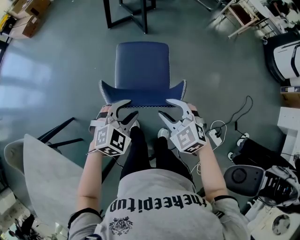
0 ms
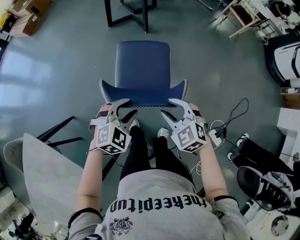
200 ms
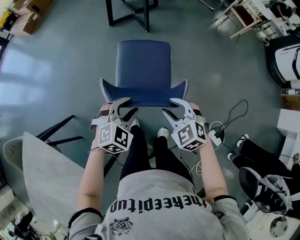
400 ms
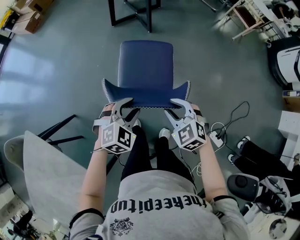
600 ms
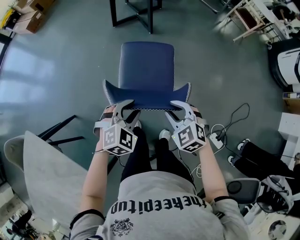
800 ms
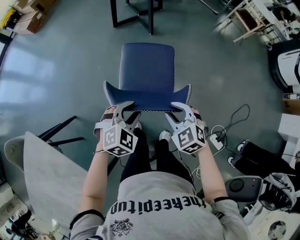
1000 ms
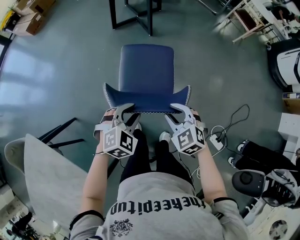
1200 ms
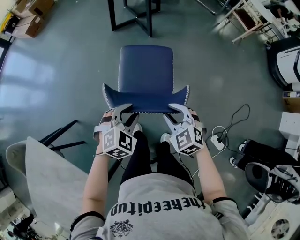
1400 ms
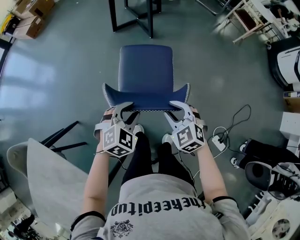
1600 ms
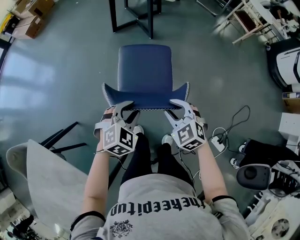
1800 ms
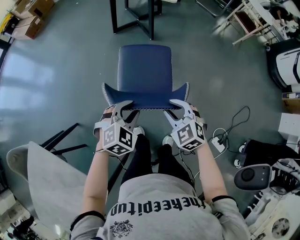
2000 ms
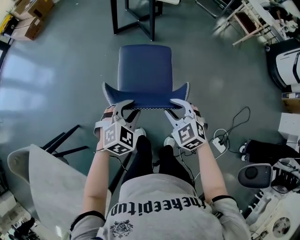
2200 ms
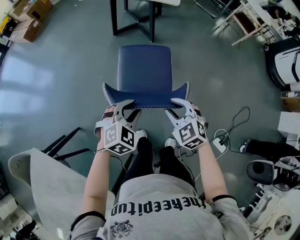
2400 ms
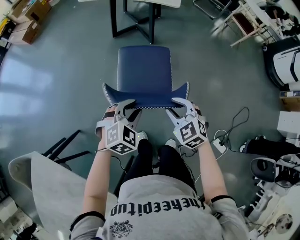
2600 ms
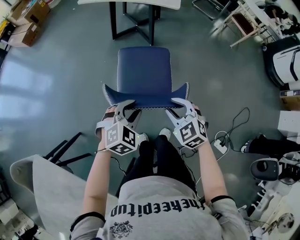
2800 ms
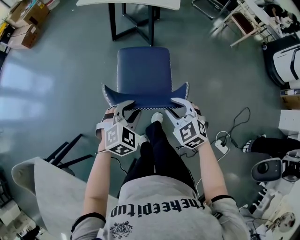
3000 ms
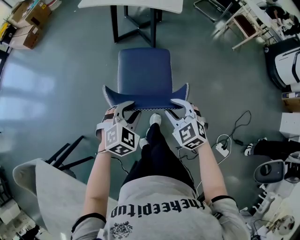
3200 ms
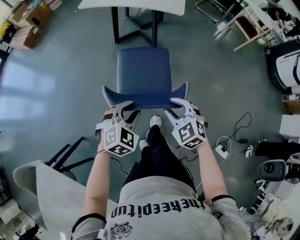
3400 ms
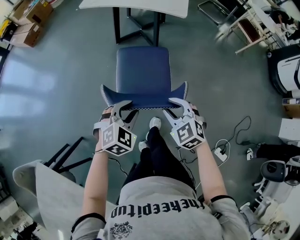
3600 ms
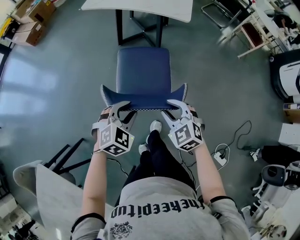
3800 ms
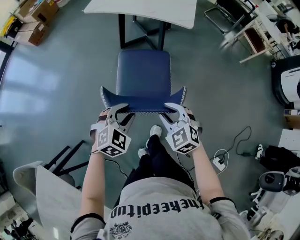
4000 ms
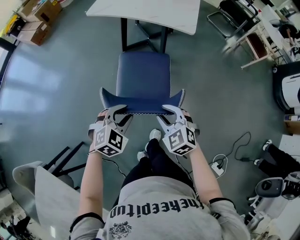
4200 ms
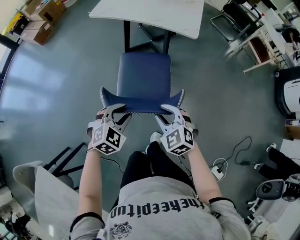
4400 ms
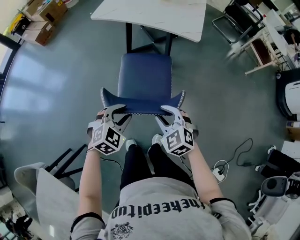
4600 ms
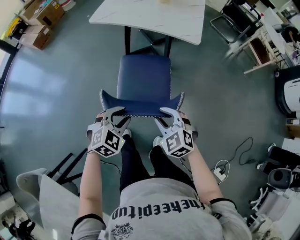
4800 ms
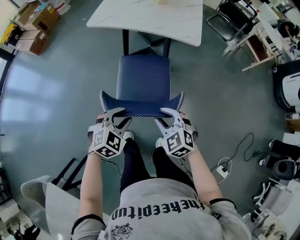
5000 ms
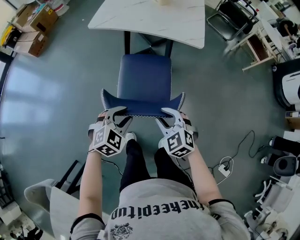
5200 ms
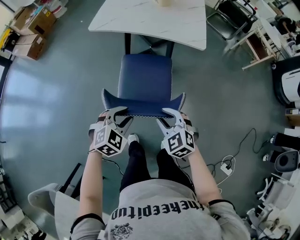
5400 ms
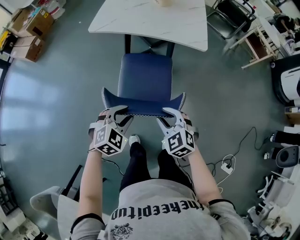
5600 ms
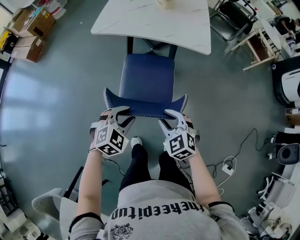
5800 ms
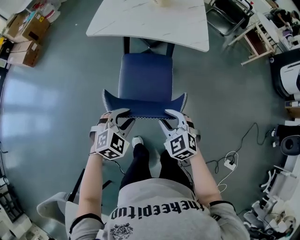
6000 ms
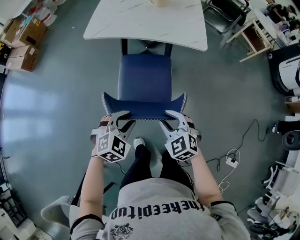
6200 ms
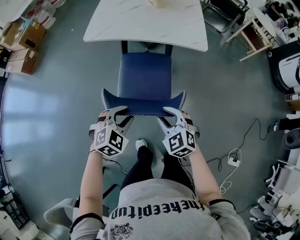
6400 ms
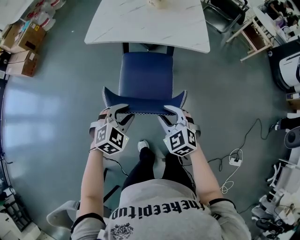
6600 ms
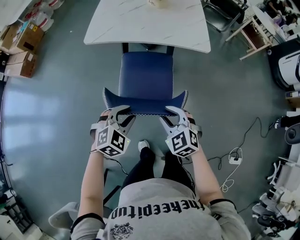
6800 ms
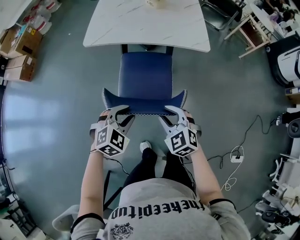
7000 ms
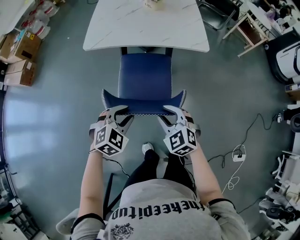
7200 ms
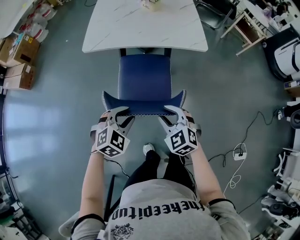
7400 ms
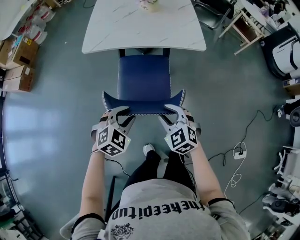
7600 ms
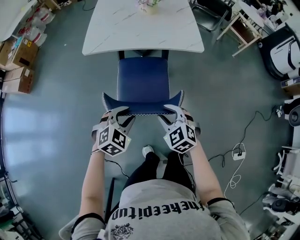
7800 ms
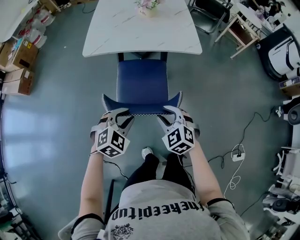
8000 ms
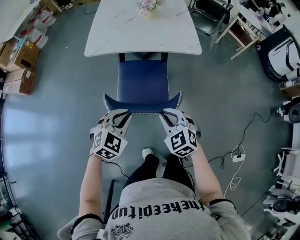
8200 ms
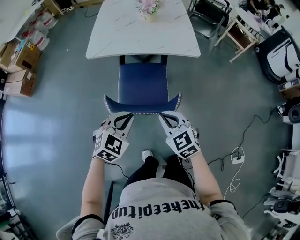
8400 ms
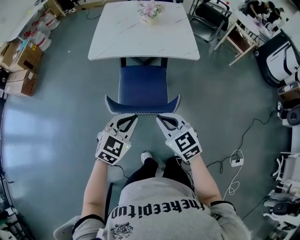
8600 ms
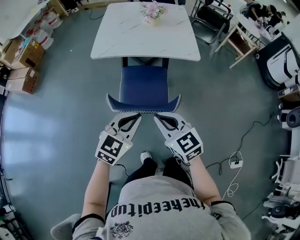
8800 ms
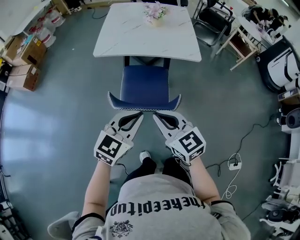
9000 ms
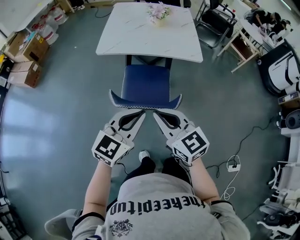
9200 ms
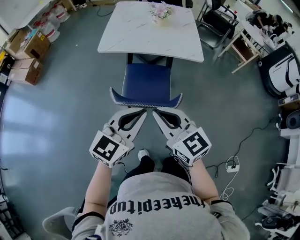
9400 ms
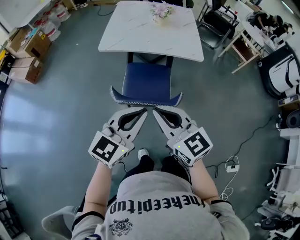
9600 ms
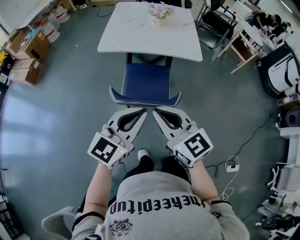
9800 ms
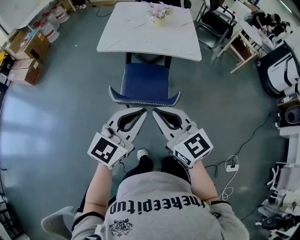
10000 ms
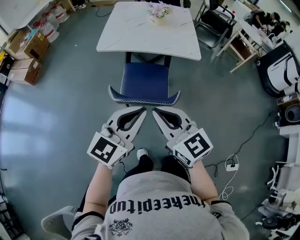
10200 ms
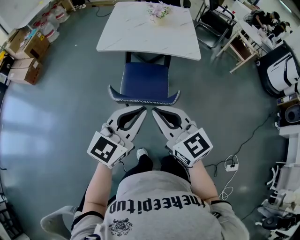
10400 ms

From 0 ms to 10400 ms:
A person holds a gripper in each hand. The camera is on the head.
From 0 ms to 1400 ms: There are only small adjustments of the grippers.
From 1400 ms to 3000 ms: Both grippers travel together forward and to the left, approximately 10 cm.
From 3000 ms to 4400 ms: The grippers both shift forward by about 15 cm.
From 4400 ms to 6000 ms: The left gripper heads forward and to the left, covering approximately 15 cm. Meanwhile the right gripper goes approximately 15 cm to the left and forward.
From 6000 ms to 7400 ms: The left gripper moves forward and to the left, roughly 10 cm; the right gripper heads forward, covering some 5 cm.
From 7400 ms to 9000 ms: The grippers both shift upward by some 15 cm. The left gripper tips its fingers upward by roughly 30 degrees, and closes. The right gripper changes its angle by some 30 degrees, and closes its fingers.
From 9000 ms to 10400 ms: Both grippers travel together upward, some 5 cm.

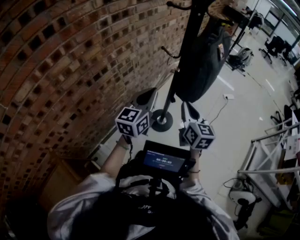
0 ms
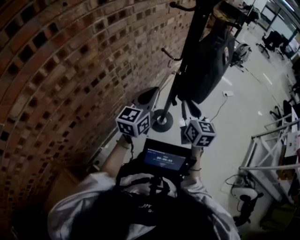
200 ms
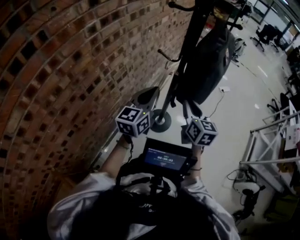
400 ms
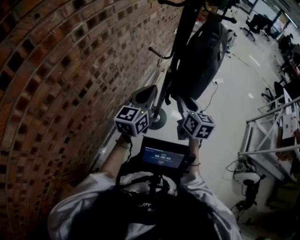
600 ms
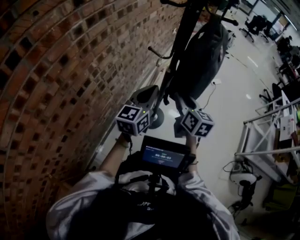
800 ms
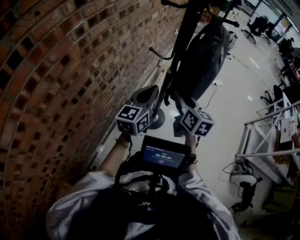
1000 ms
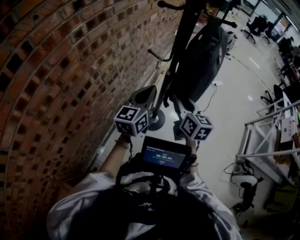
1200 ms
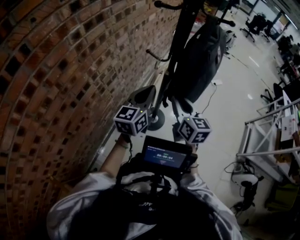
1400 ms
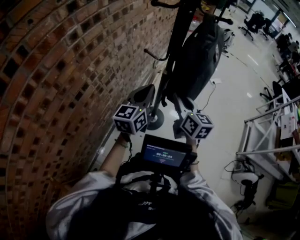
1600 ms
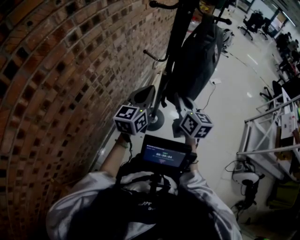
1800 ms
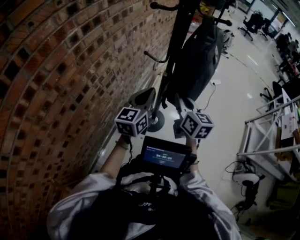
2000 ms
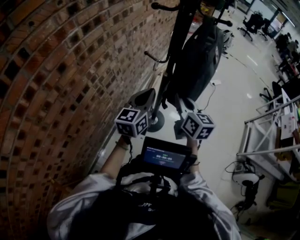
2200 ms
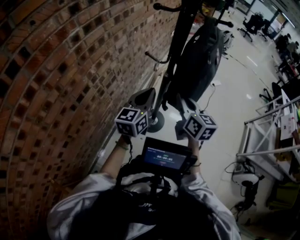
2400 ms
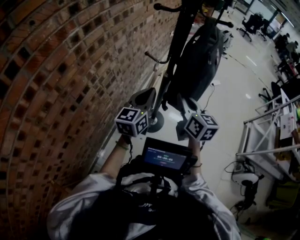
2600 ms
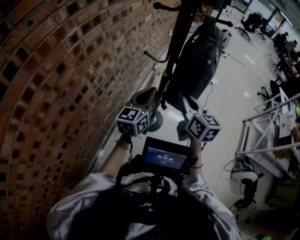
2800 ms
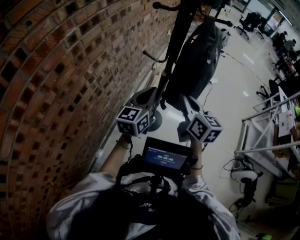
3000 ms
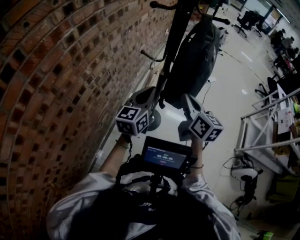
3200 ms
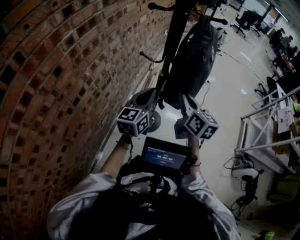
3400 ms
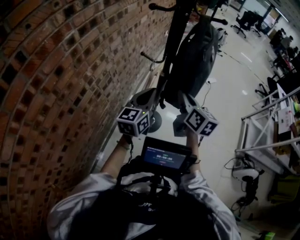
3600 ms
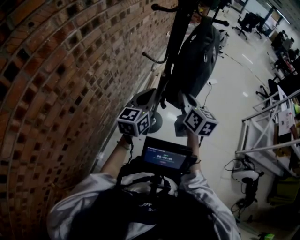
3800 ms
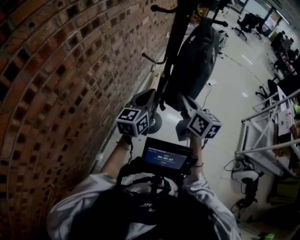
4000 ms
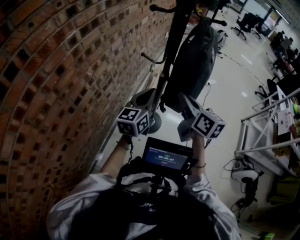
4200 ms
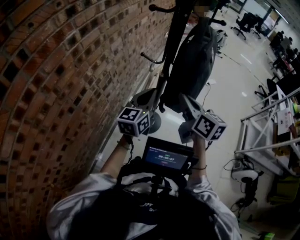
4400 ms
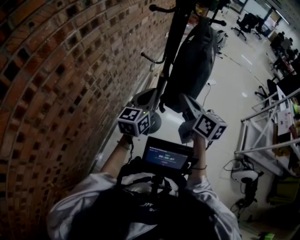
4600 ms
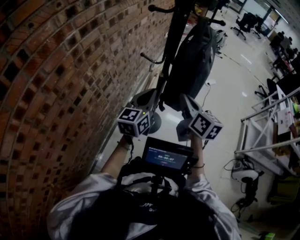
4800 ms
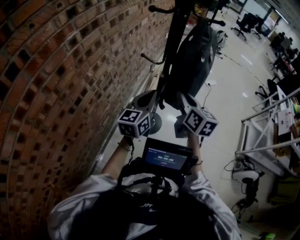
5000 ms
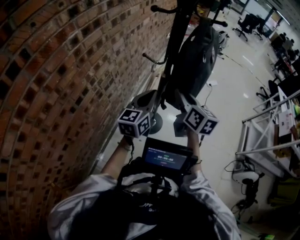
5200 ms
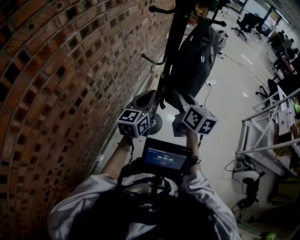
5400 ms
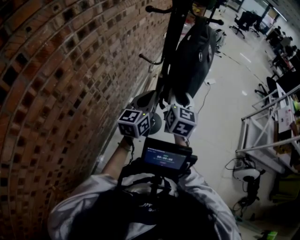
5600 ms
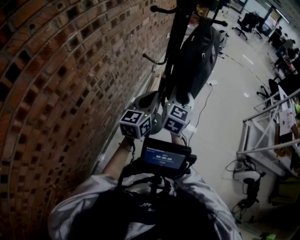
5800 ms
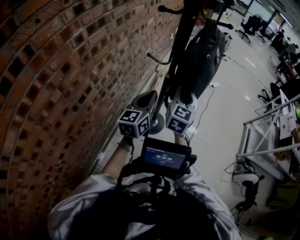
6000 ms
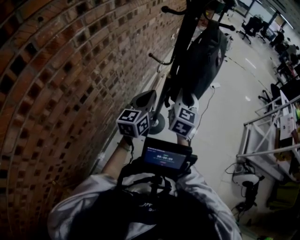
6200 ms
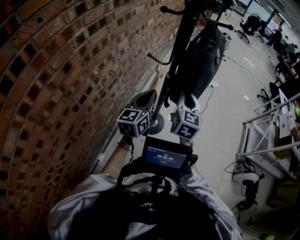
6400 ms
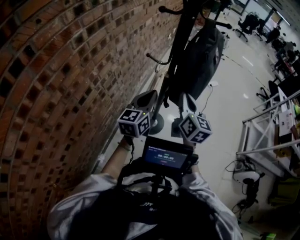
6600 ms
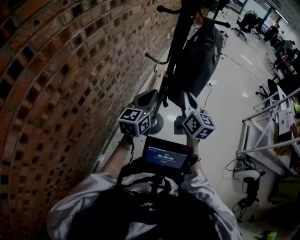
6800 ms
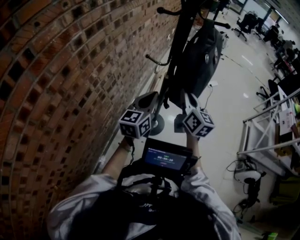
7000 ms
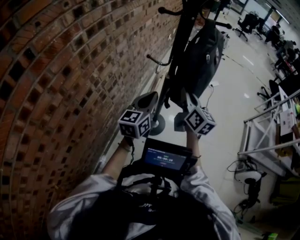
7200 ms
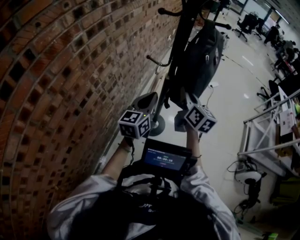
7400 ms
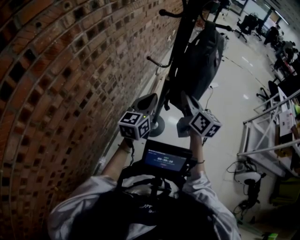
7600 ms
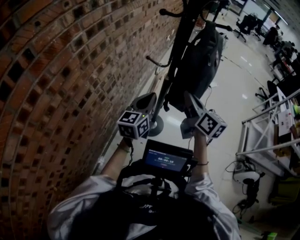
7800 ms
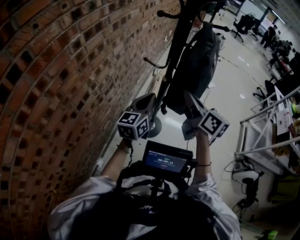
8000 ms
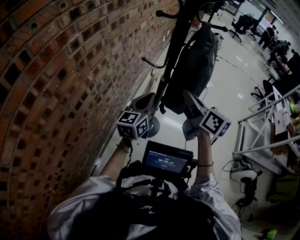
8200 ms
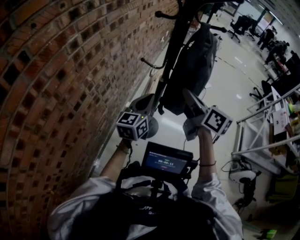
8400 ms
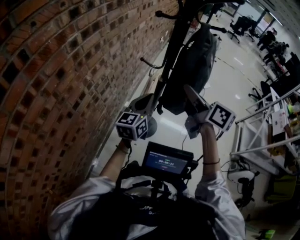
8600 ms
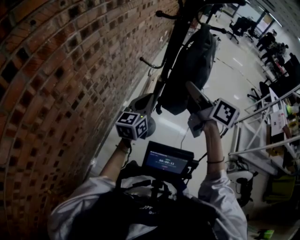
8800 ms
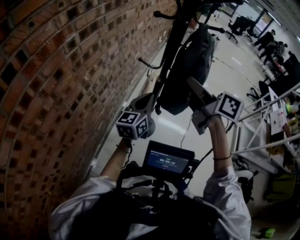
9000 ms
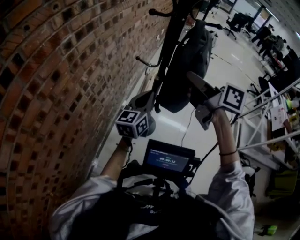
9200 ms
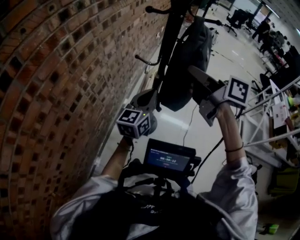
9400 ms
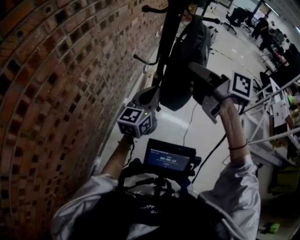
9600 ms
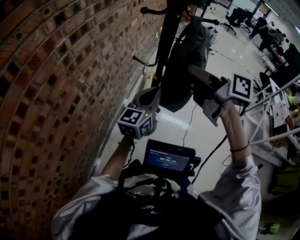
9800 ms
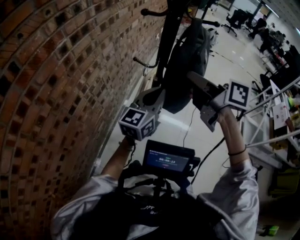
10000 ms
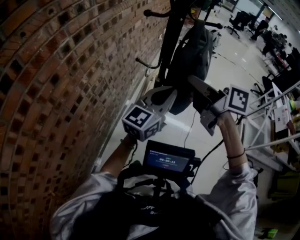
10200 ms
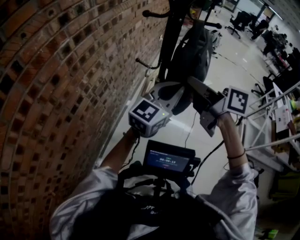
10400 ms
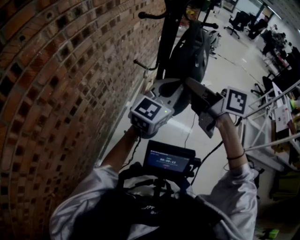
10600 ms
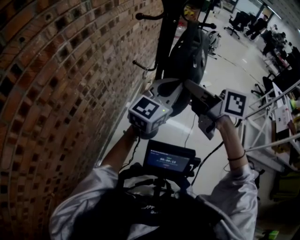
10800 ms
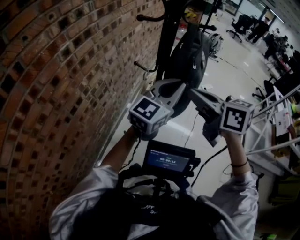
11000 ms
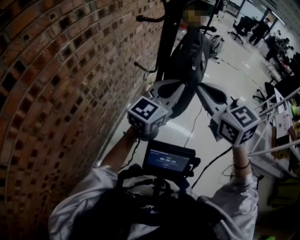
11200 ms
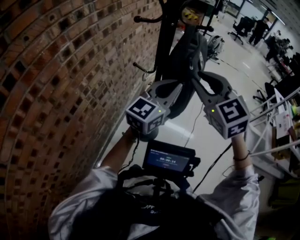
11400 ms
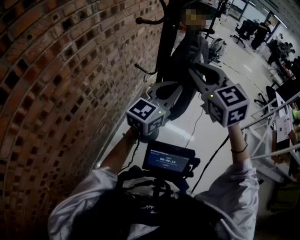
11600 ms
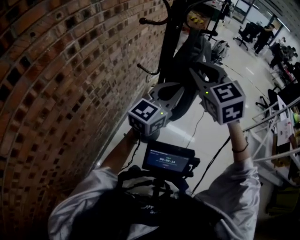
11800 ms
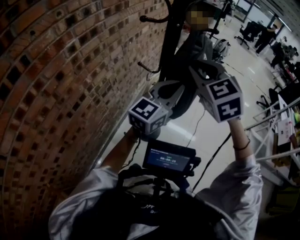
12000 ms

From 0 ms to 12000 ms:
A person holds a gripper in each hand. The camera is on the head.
From 0 ms to 1600 ms: The two grippers go roughly 10 cm forward.
From 1600 ms to 3000 ms: The grippers move only a little.
From 3000 ms to 4400 ms: The grippers move only a little.
From 4400 ms to 6000 ms: The right gripper heads forward, covering approximately 5 cm, and turns by about 50 degrees.
From 6000 ms to 7600 ms: The right gripper turns by approximately 40 degrees.
From 7600 ms to 9000 ms: The right gripper heads upward, covering some 10 cm, and rotates approximately 20 degrees.
From 9000 ms to 10400 ms: The left gripper is displaced upward and to the right by approximately 15 cm, and swivels approximately 30 degrees.
From 10400 ms to 12000 ms: The right gripper shifts by about 5 cm, and rotates around the line of its fingers by about 70 degrees, counterclockwise from behind.

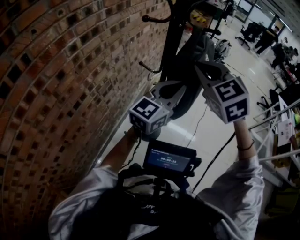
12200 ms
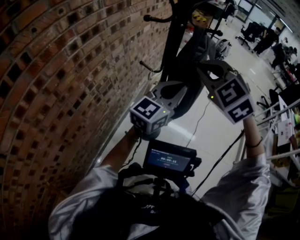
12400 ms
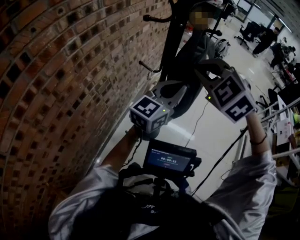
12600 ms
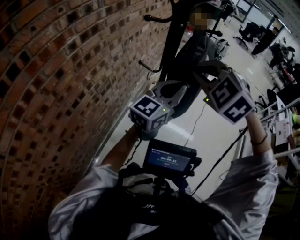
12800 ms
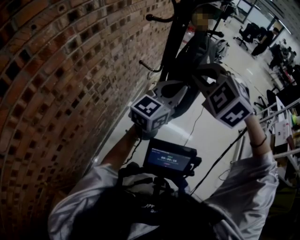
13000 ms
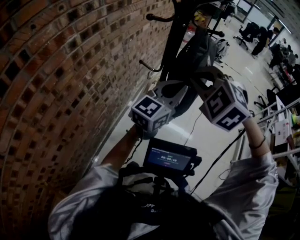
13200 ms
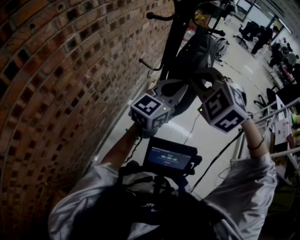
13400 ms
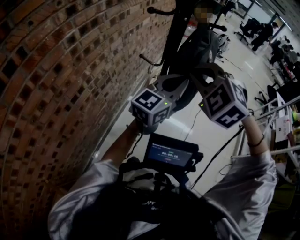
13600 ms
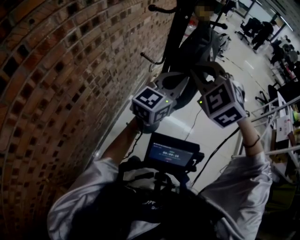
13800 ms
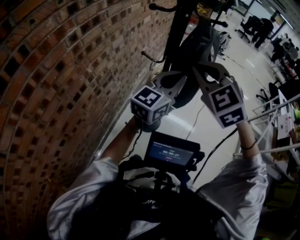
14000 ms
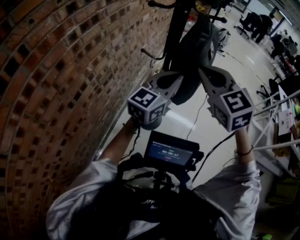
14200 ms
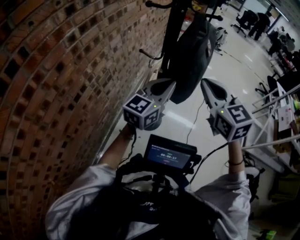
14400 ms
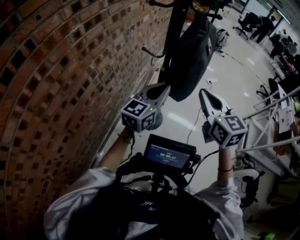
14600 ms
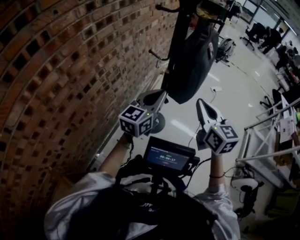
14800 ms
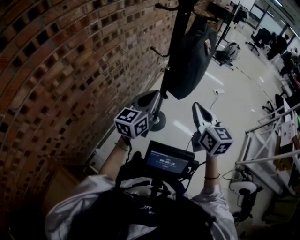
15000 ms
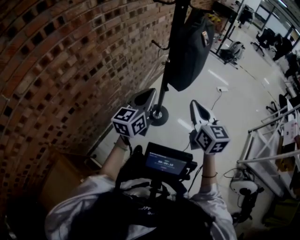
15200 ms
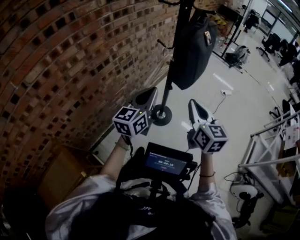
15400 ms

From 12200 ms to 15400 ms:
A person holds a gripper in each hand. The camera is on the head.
From 12200 ms to 13800 ms: The right gripper changes place by about 5 cm, and turns by approximately 20 degrees.
From 13800 ms to 15400 ms: The left gripper travels backward and downward by about 20 cm, and swivels about 30 degrees, while the right gripper heads backward, downward and to the right, covering some 25 cm, and rotates around the line of its fingers by approximately 60 degrees, clockwise from behind.
